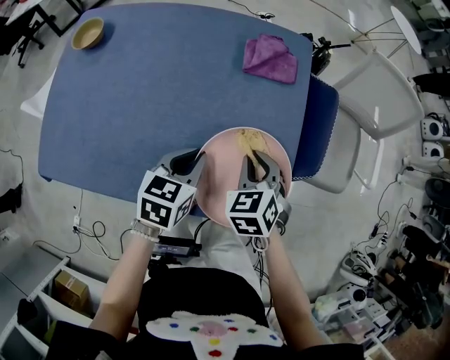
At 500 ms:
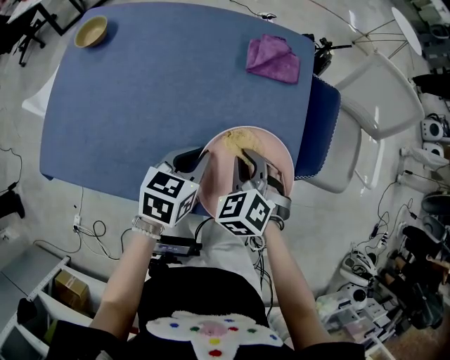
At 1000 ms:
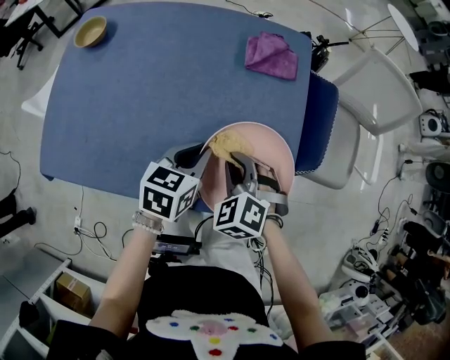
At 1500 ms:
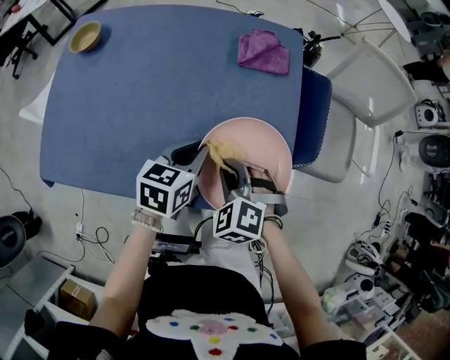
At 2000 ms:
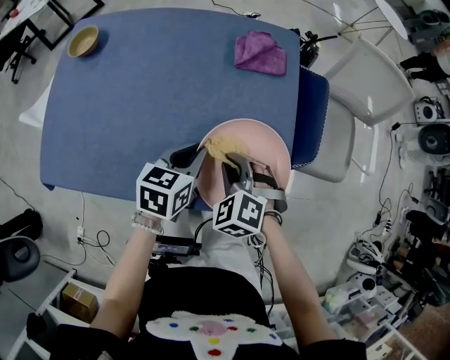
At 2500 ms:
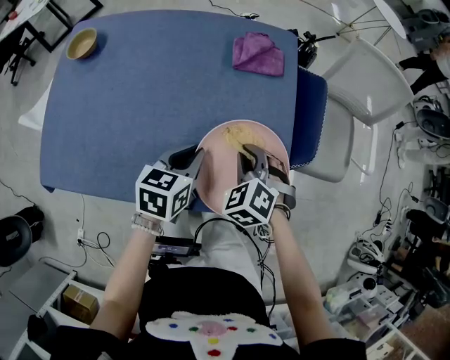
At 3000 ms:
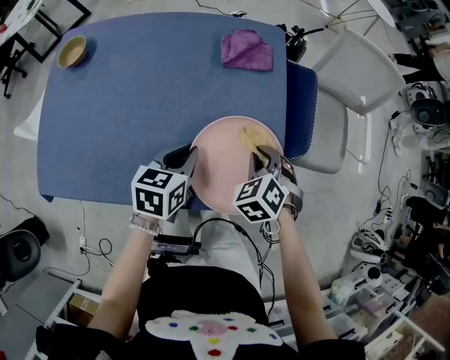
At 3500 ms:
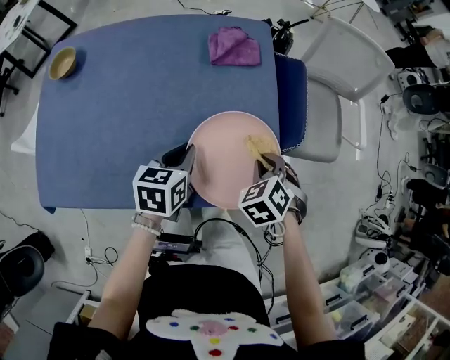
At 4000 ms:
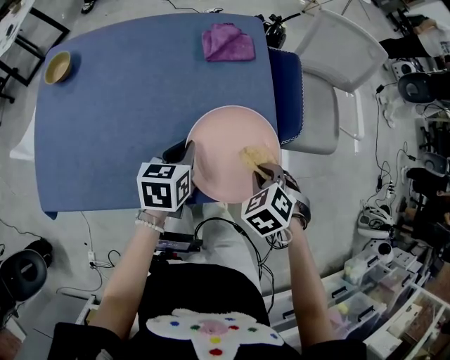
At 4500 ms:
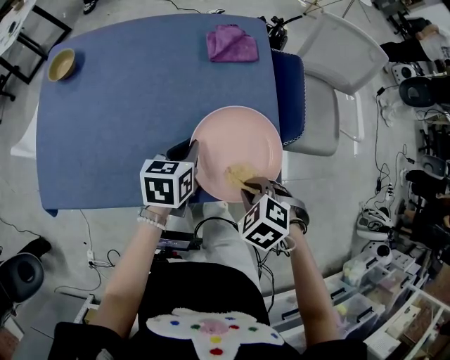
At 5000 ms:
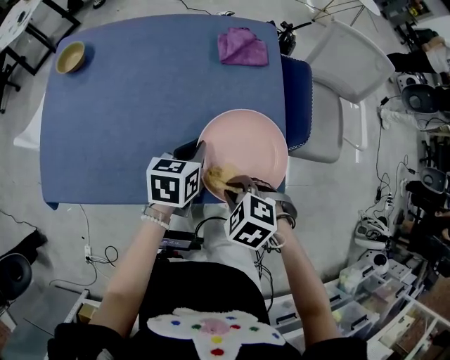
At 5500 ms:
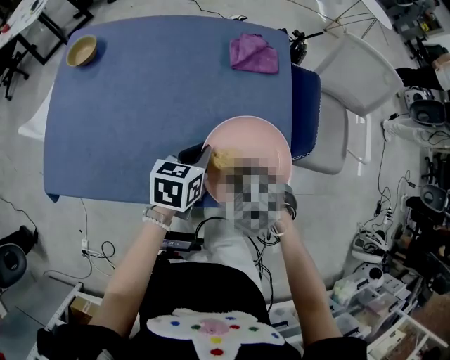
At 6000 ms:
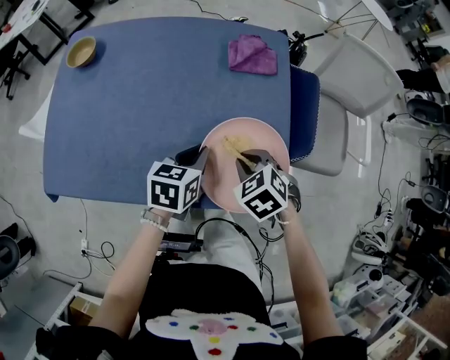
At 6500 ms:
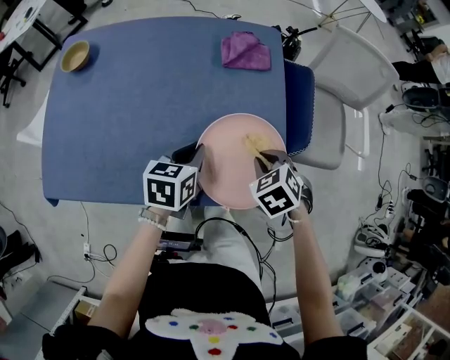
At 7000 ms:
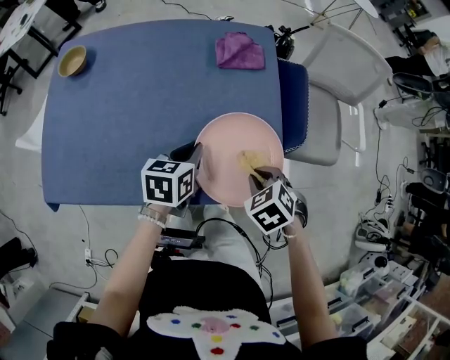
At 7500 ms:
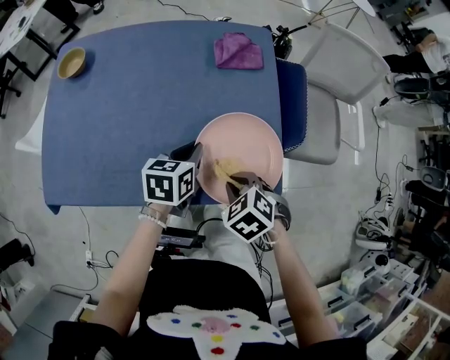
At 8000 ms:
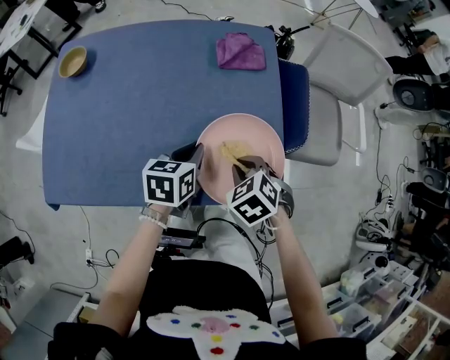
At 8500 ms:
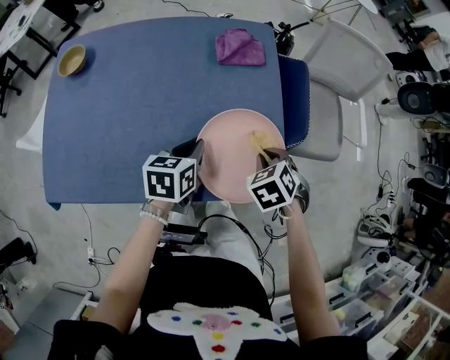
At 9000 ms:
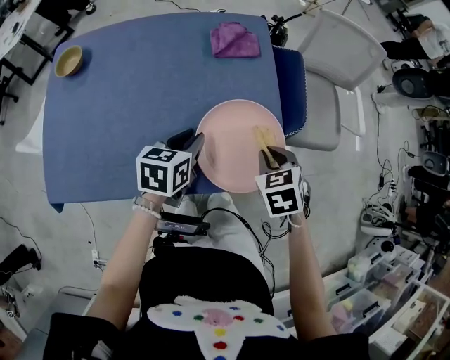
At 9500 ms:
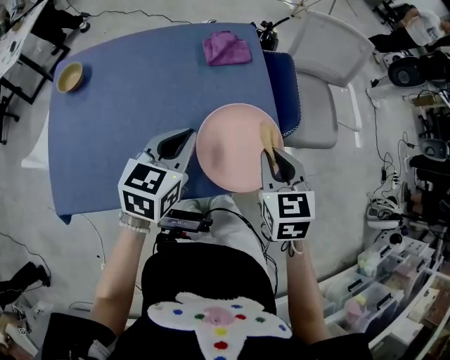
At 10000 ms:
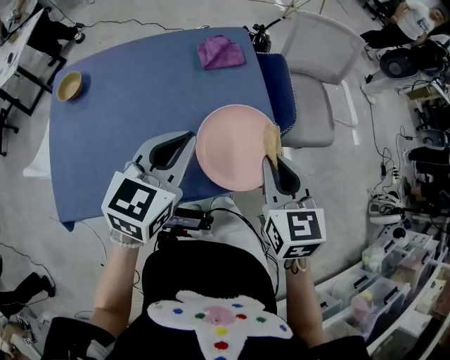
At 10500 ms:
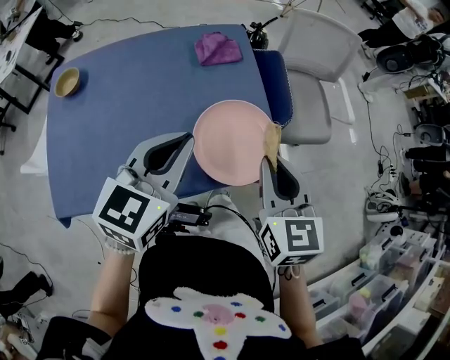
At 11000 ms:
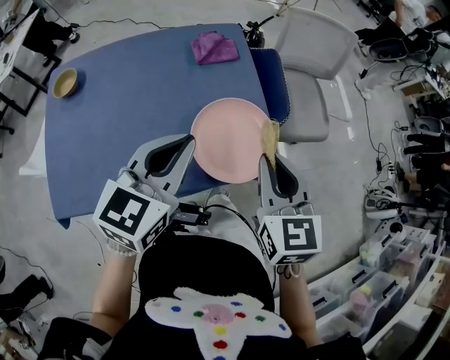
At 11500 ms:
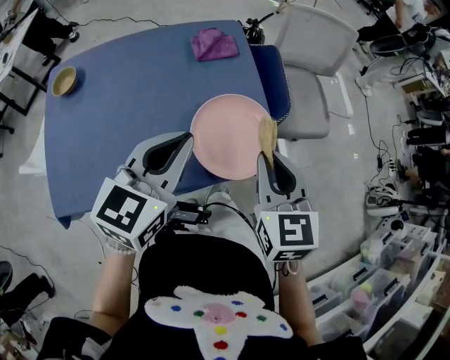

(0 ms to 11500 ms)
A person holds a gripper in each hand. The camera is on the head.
0 ms - 2000 ms: The right gripper moves backward and to the left, about 5 cm, and rotates approximately 30 degrees.
2000 ms - 4000 ms: The right gripper goes approximately 15 cm to the right, and swivels some 30 degrees.
4000 ms - 6000 ms: The right gripper changes place by some 10 cm.
6000 ms - 7500 ms: The right gripper is displaced backward by roughly 10 cm.
7500 ms - 9500 ms: The left gripper is displaced upward by approximately 10 cm, and rotates about 30 degrees; the right gripper goes some 15 cm upward, to the right and forward, and tilts its fingers approximately 30 degrees upward.
9500 ms - 11500 ms: The grippers both shift upward by about 10 cm.

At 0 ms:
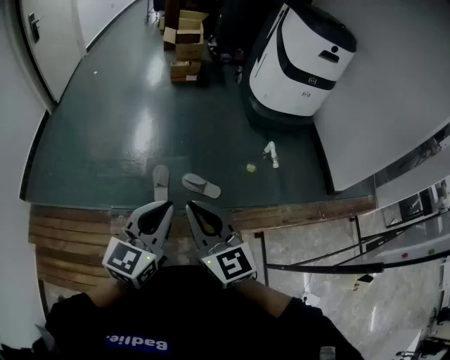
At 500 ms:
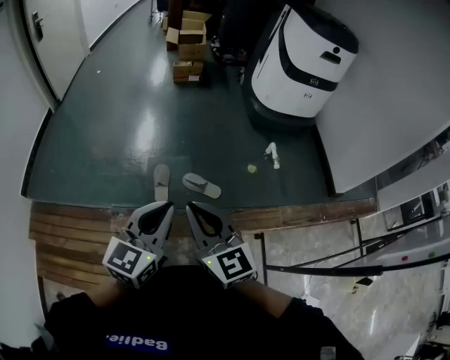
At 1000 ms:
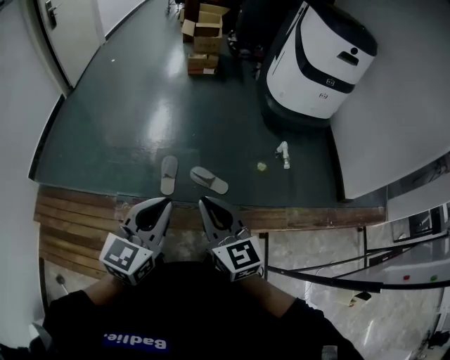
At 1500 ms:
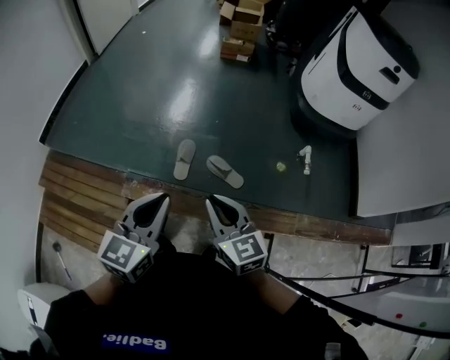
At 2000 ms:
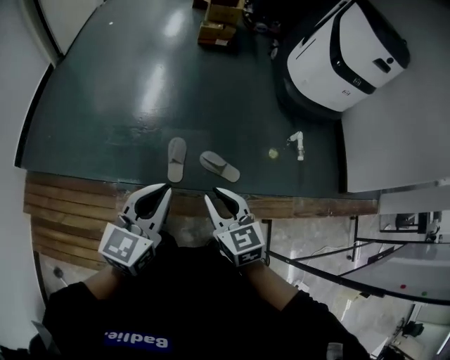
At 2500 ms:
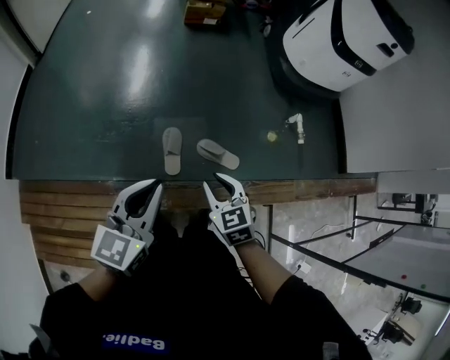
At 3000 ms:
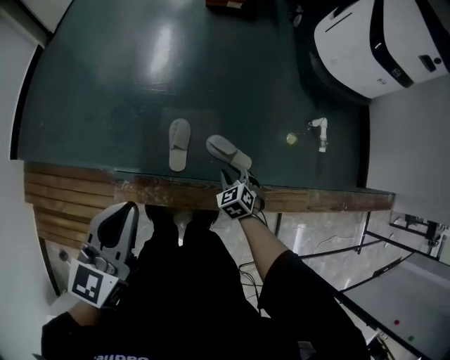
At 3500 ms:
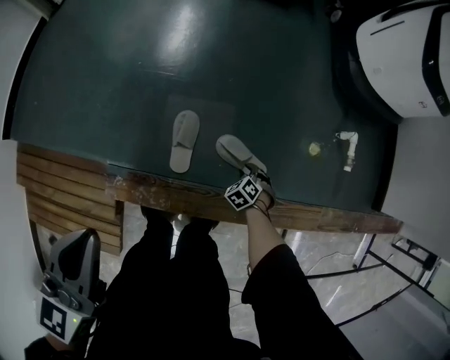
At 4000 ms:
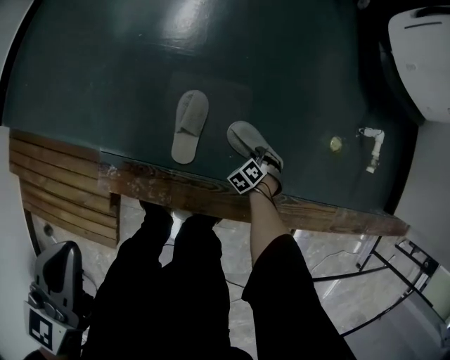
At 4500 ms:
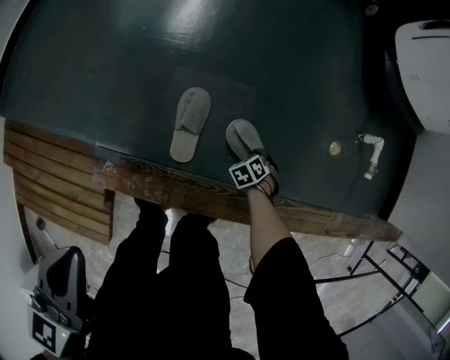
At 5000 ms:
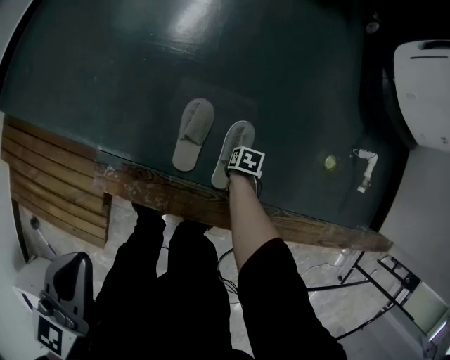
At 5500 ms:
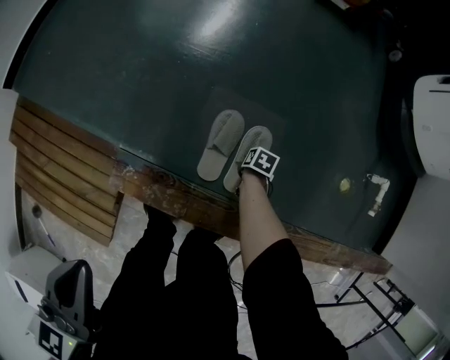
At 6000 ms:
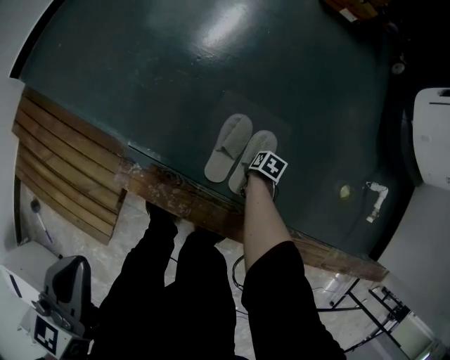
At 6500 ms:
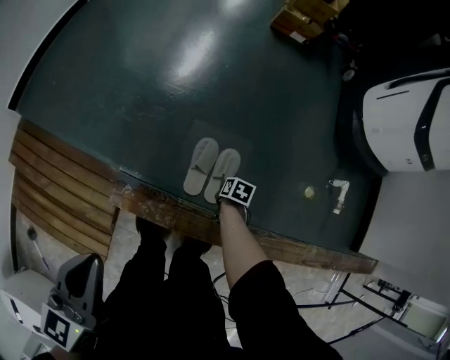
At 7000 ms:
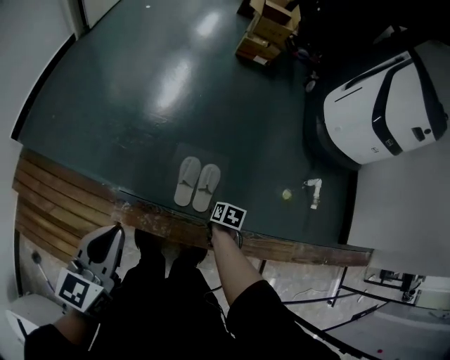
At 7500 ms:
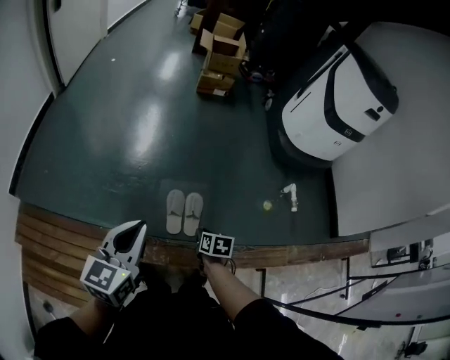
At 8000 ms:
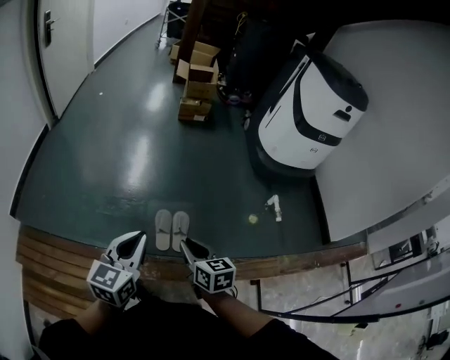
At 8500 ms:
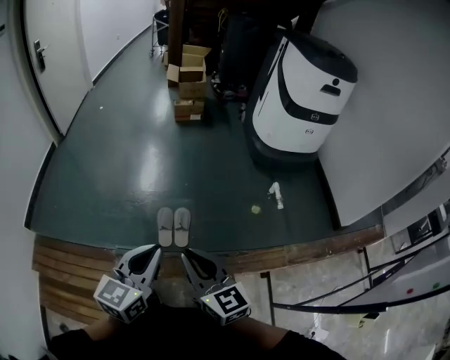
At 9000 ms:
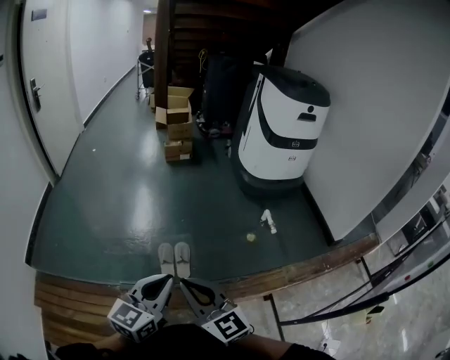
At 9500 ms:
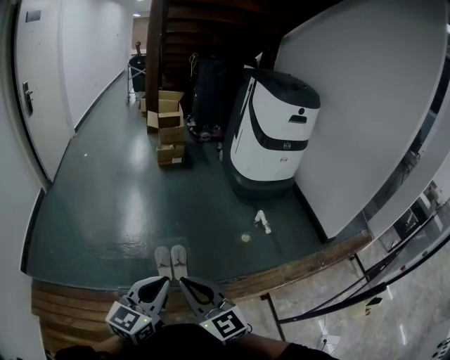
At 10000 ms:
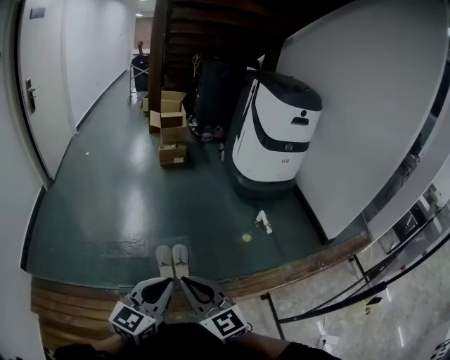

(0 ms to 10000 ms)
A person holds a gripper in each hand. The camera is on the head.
0 ms - 2000 ms: The left gripper is displaced to the left, forward and downward by some 20 cm, while the right gripper moves downward, forward and to the left, approximately 20 cm, and swivels roughly 20 degrees.
2000 ms - 4000 ms: The right gripper goes some 60 cm downward, and tilts its fingers roughly 40 degrees downward, while the left gripper shifts roughly 25 cm downward, and swivels some 30 degrees.
4000 ms - 6000 ms: The left gripper moves about 15 cm; the right gripper changes place by about 15 cm, and twists roughly 70 degrees clockwise, seen from behind.
6000 ms - 8000 ms: The right gripper heads upward, covering roughly 60 cm, and tips its fingers upward by some 50 degrees, while the left gripper travels upward by roughly 30 cm, and turns by some 40 degrees.
8000 ms - 10000 ms: The left gripper goes about 20 cm backward, to the right and upward, and changes its angle by about 20 degrees, while the right gripper is displaced upward and backward by some 25 cm, and swivels some 40 degrees.

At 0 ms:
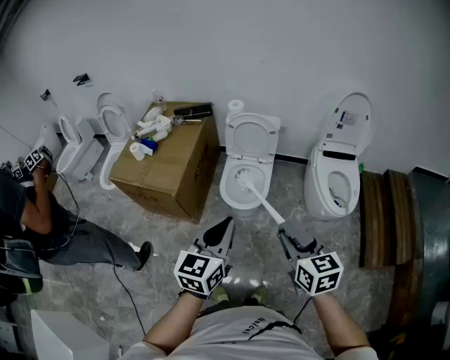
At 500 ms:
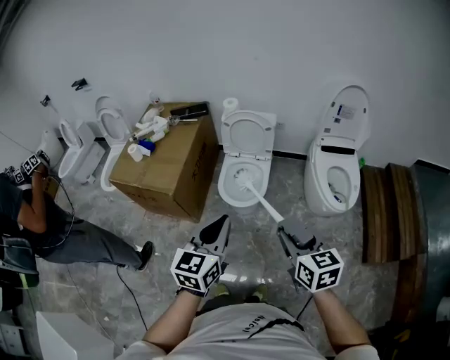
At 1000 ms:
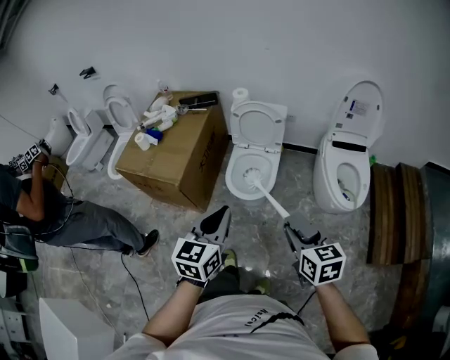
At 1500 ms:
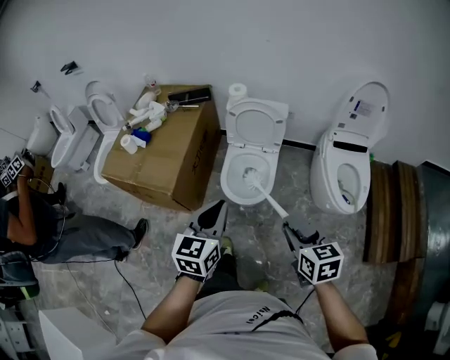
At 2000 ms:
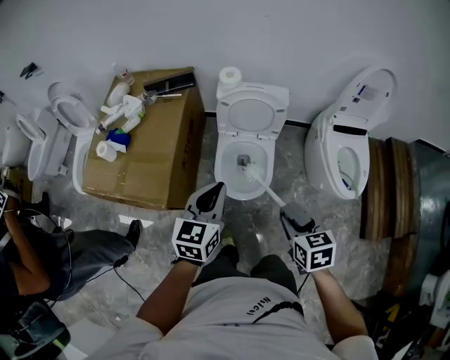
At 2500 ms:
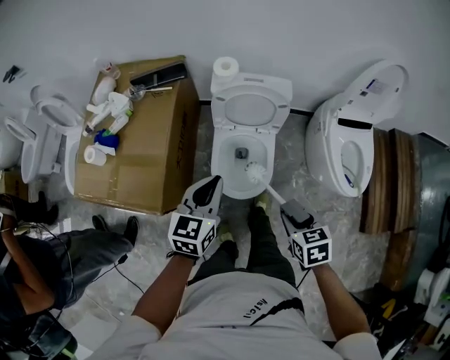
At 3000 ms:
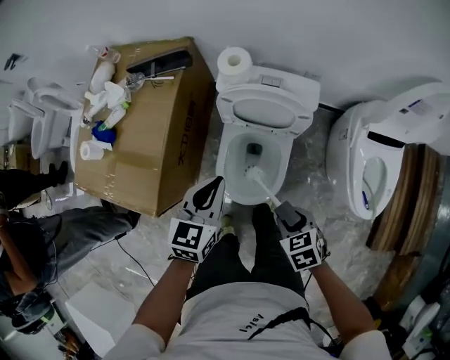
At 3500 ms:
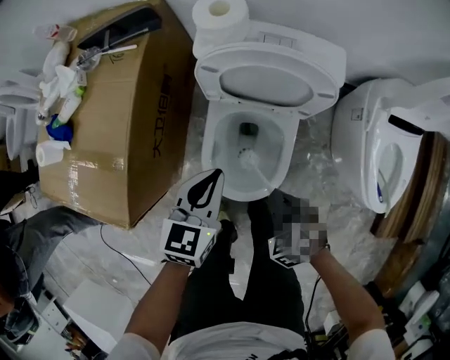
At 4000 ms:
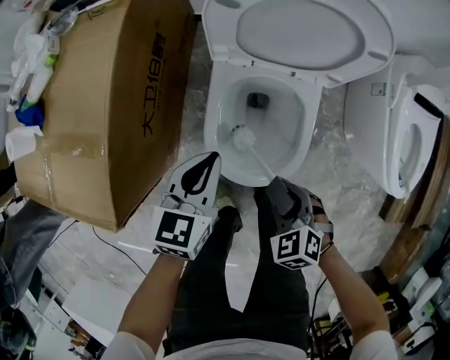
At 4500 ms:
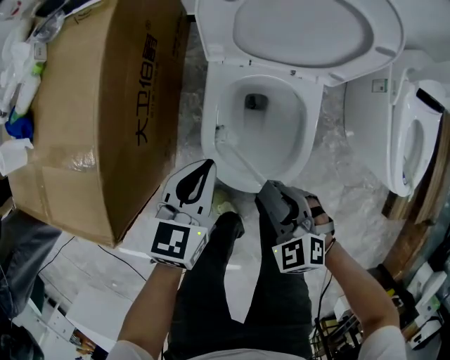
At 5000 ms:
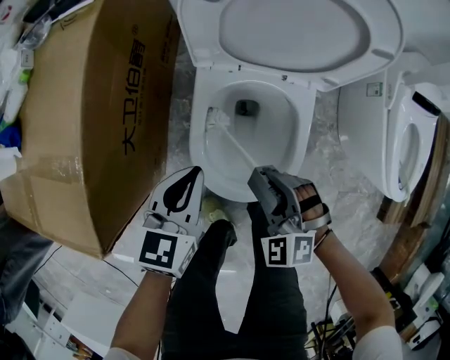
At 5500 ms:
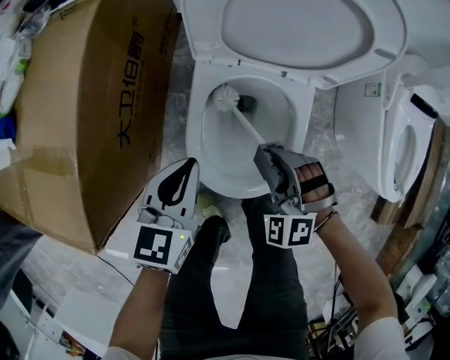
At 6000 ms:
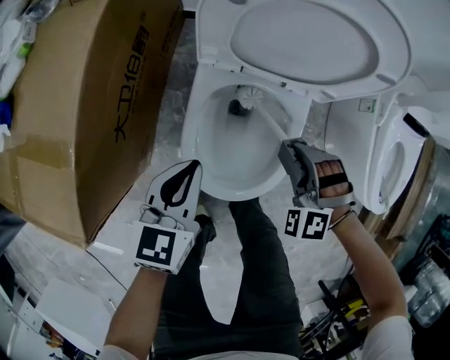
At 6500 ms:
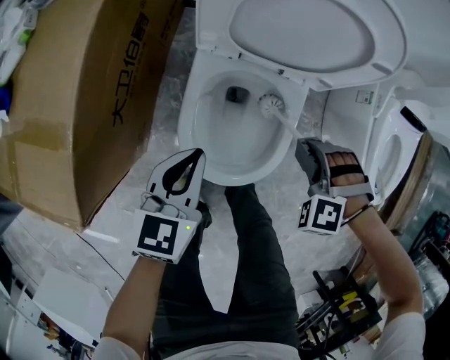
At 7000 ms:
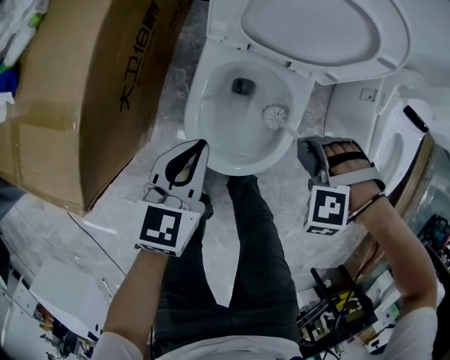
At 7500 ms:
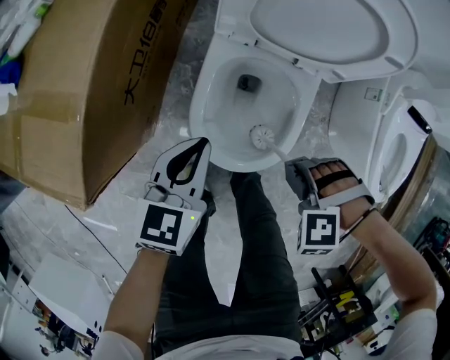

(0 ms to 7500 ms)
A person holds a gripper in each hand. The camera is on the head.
0 ms - 2000 ms: The left gripper travels forward by some 30 cm; the right gripper heads forward and downward, covering some 25 cm, and turns by approximately 20 degrees.
2000 ms - 4000 ms: The right gripper moves downward, approximately 40 cm, and swivels approximately 40 degrees. Meanwhile the left gripper heads downward and forward, covering some 40 cm.
4000 ms - 5500 ms: The right gripper shifts some 10 cm forward, and turns by roughly 40 degrees.
5500 ms - 7500 ms: The right gripper ends up approximately 10 cm from where it was, and angles its fingers downward, by approximately 40 degrees.
